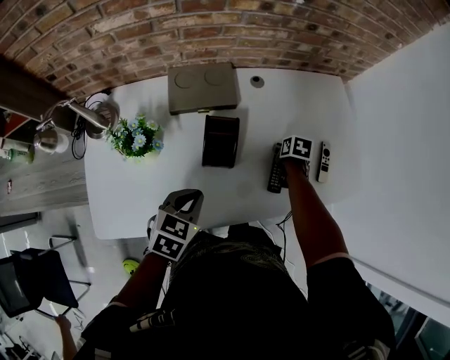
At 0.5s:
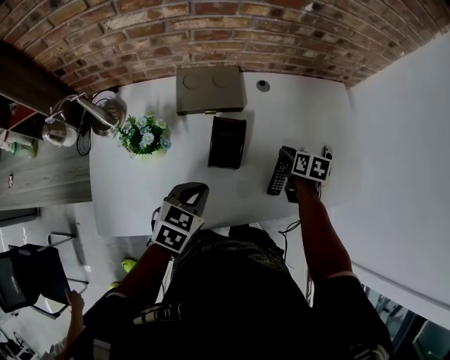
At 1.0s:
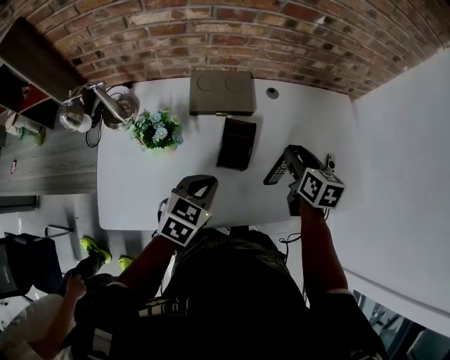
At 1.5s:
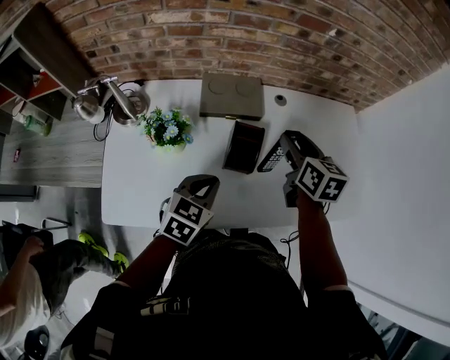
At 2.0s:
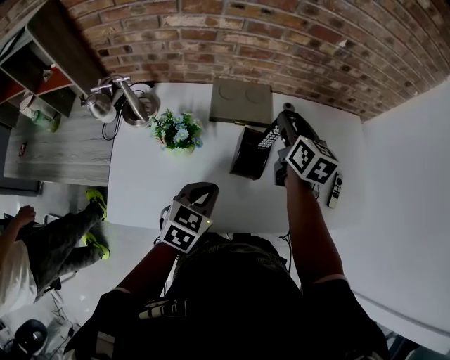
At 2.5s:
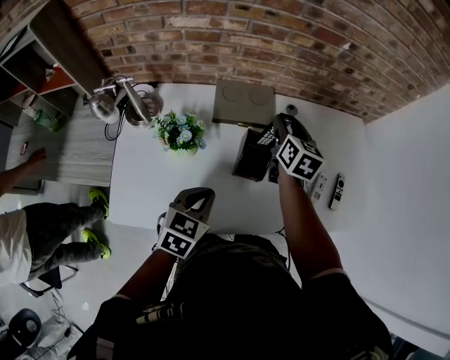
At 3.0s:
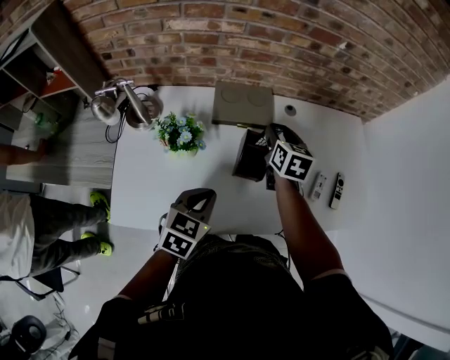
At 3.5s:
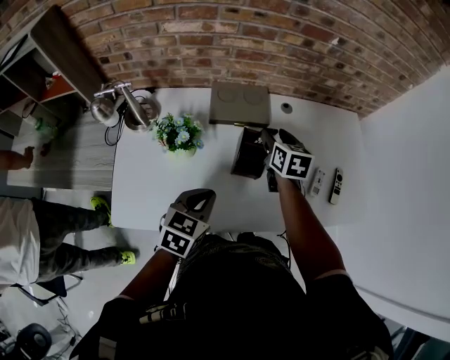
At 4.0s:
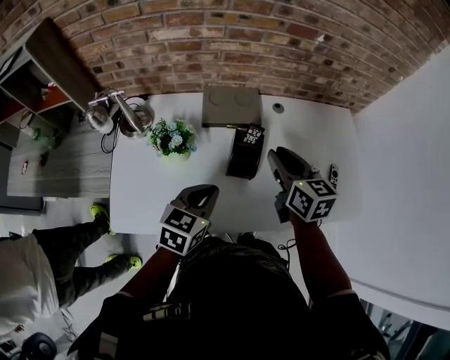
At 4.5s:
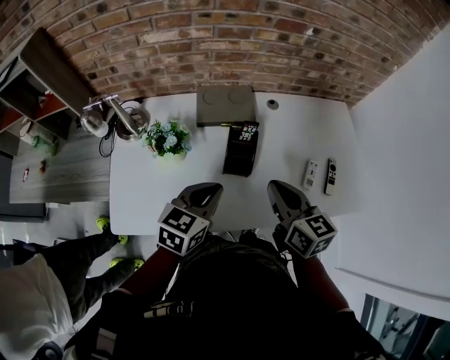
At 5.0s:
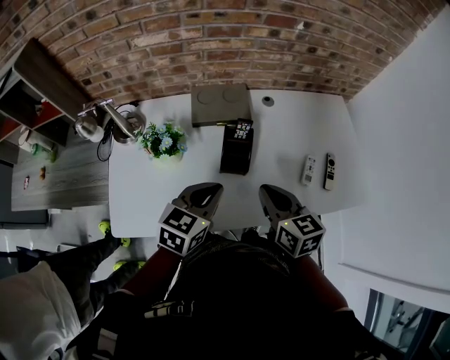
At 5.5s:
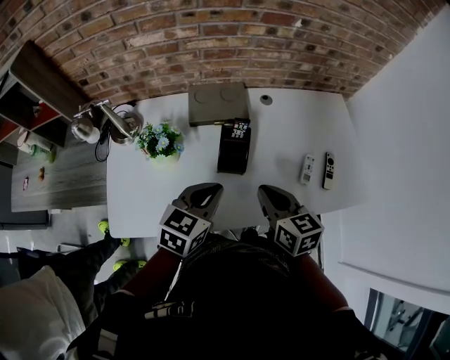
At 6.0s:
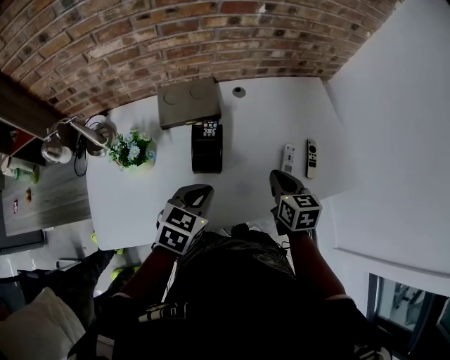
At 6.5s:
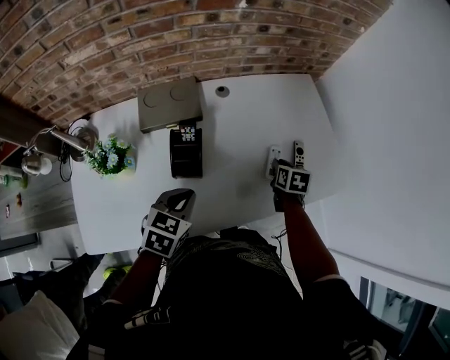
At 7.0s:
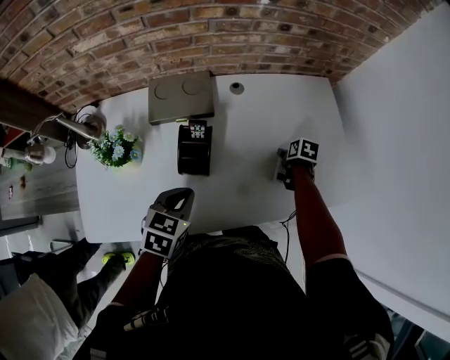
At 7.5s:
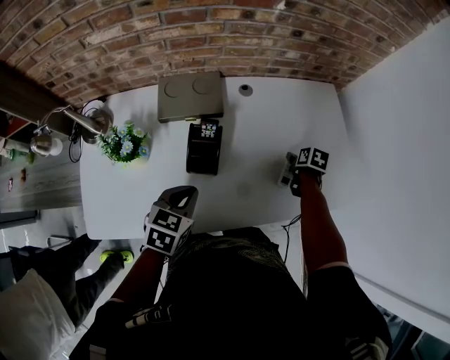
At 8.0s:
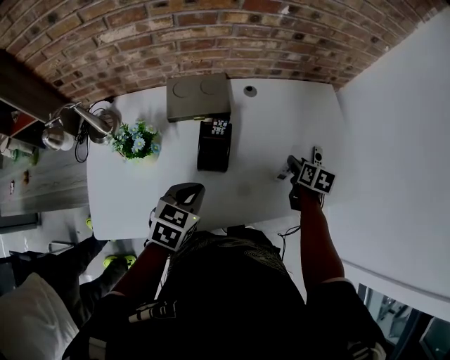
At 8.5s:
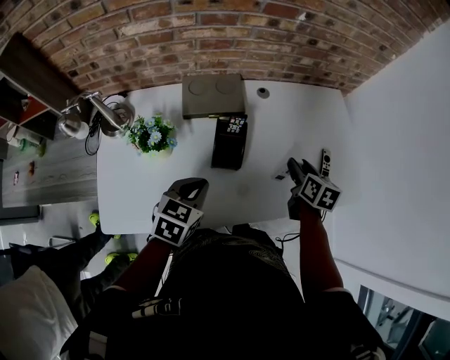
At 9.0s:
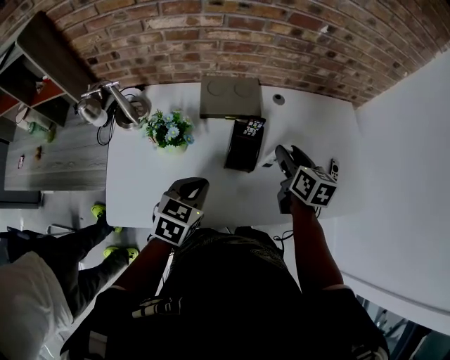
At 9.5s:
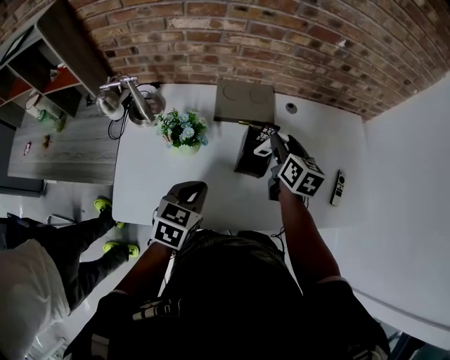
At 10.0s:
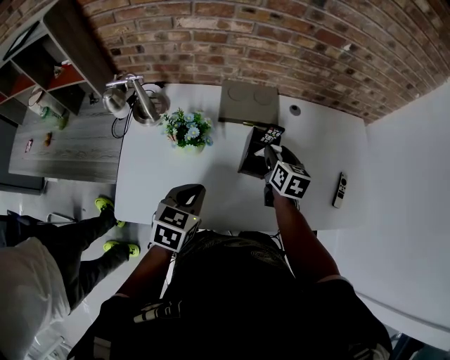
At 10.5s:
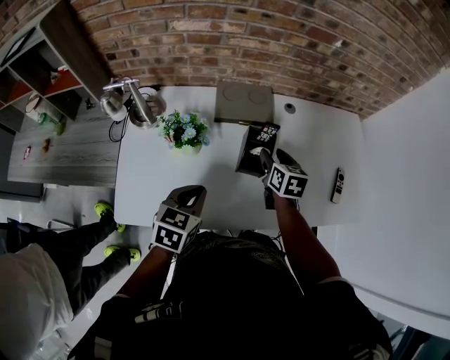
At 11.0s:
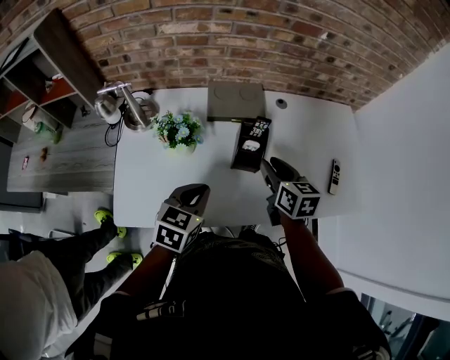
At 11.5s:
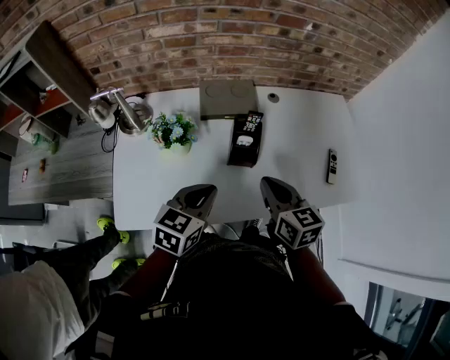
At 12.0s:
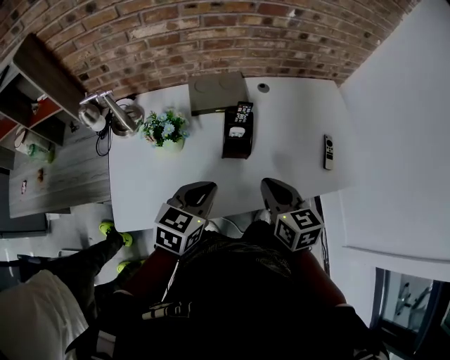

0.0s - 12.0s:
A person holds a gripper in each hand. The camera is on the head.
0.0s - 2.0s: The left gripper ends up some 5 cm from where it was. The right gripper moves upward and to the left, about 35 cm, and tips its fingers upward by approximately 50 degrees.
2.0s - 4.0s: The right gripper goes approximately 10 cm backward.
4.0s - 6.0s: The right gripper moves to the right and downward, approximately 20 cm, rotates roughly 20 degrees, and closes up. Meanwhile the left gripper travels to the right by some 10 cm.
6.0s - 8.0s: The right gripper travels forward, to the right and downward by roughly 15 cm, turns by some 20 degrees, and opens.
8.0s - 10.0s: The right gripper travels to the left by about 25 cm, and swivels roughly 20 degrees; the left gripper goes about 15 cm to the left and backward.
10.0s - 12.0s: The right gripper heads backward, covering approximately 20 cm, and closes its fingers. Meanwhile the left gripper heads to the right, covering roughly 10 cm.

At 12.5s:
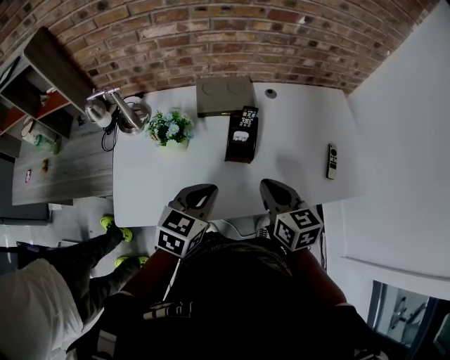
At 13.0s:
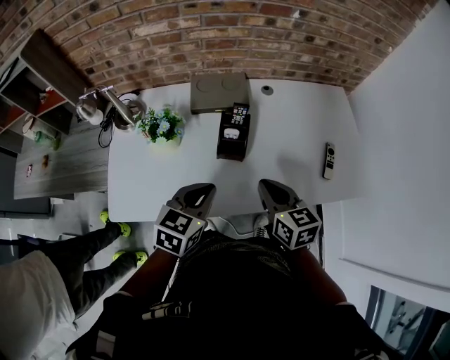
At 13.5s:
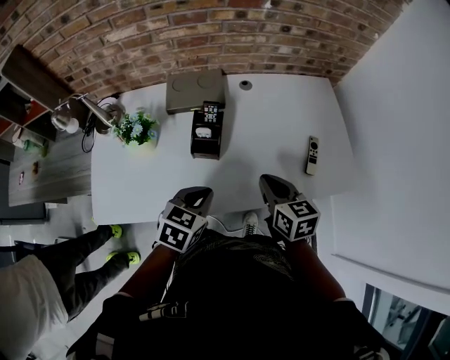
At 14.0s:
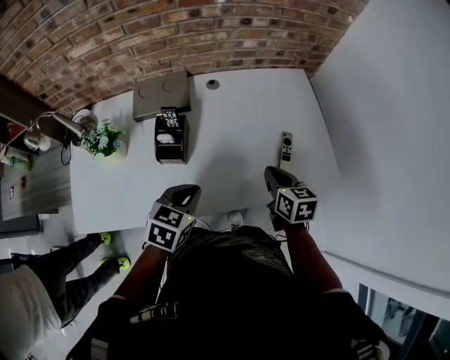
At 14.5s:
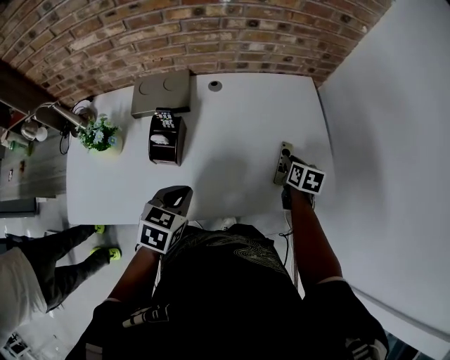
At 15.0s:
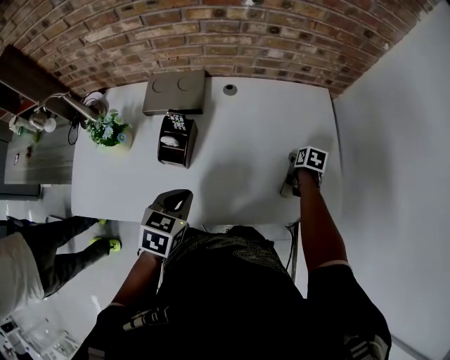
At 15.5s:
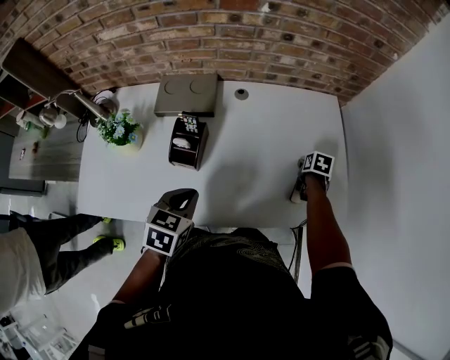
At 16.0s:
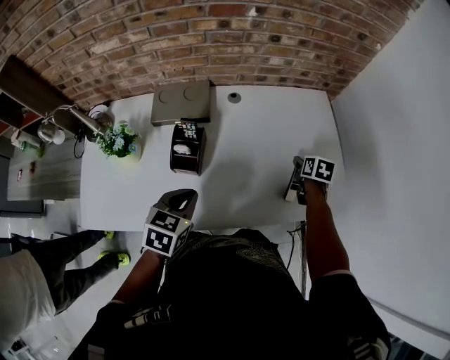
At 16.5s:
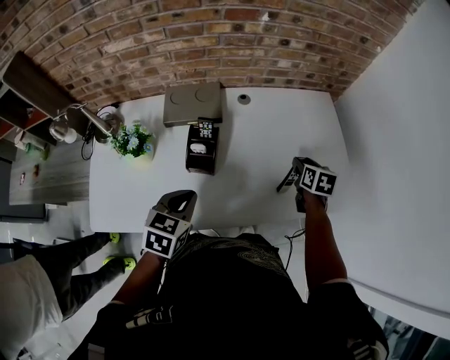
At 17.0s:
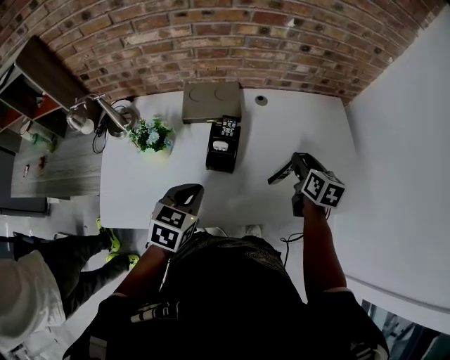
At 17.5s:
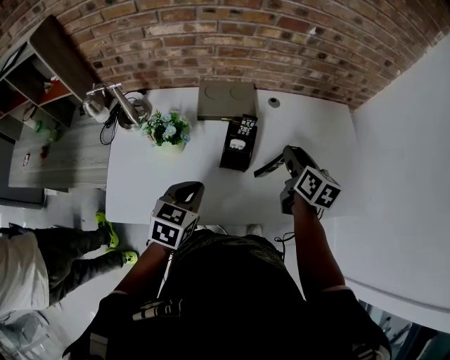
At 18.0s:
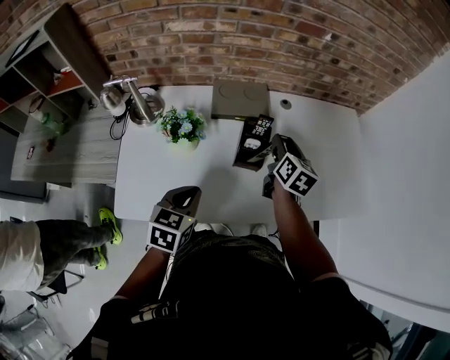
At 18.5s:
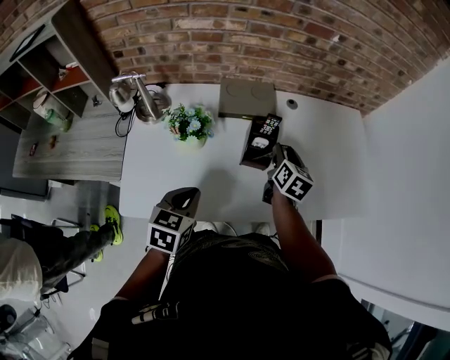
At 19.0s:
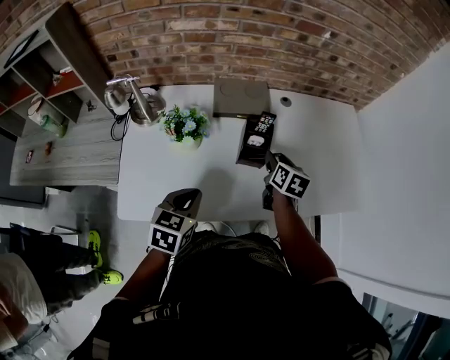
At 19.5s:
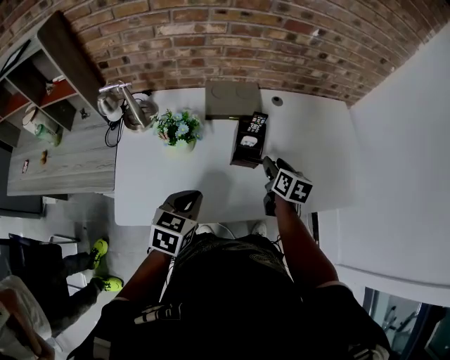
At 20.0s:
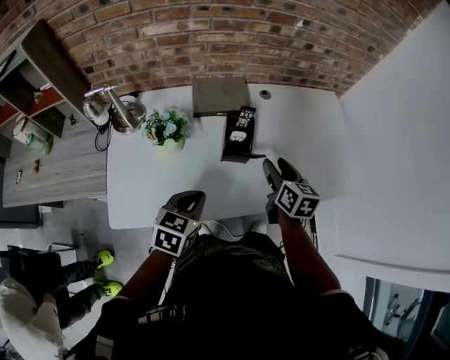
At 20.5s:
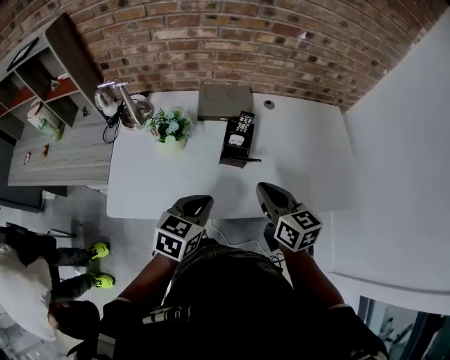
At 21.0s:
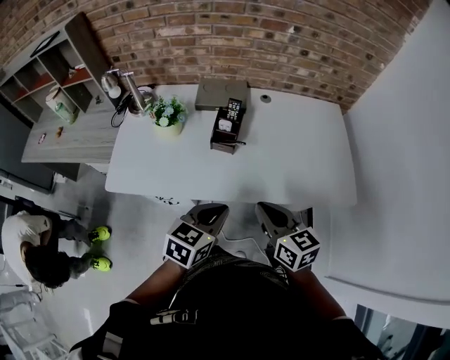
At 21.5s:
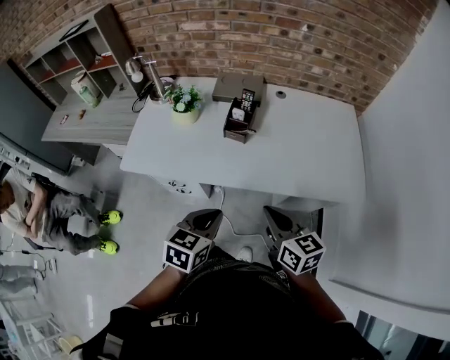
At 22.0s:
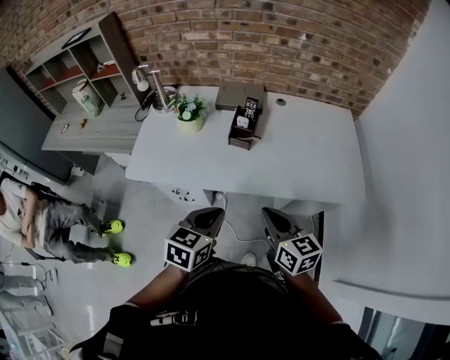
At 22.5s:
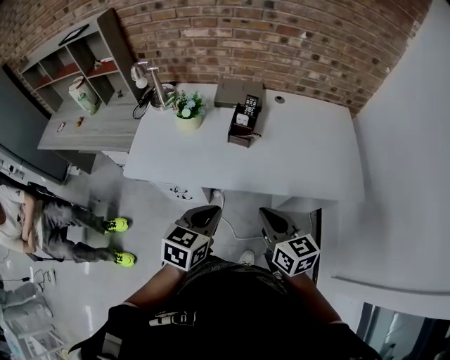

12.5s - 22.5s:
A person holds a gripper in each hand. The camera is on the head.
12.5s - 14.5s: The left gripper moves to the right, approximately 20 cm, while the right gripper heads to the right, forward and downward, covering roughly 40 cm, and rotates about 30 degrees.
14.5s - 16.5s: Both grippers move to the left, approximately 10 cm. The right gripper opens up.
16.5s - 18.5s: The right gripper travels to the left by some 25 cm. The left gripper goes about 20 cm to the left and backward.
18.5s - 20.5s: The left gripper is displaced to the right by some 10 cm, while the right gripper shifts some 20 cm backward and upward, changes its angle by about 30 degrees, and closes up.
20.5s - 22.5s: The grippers both shift backward by roughly 20 cm.

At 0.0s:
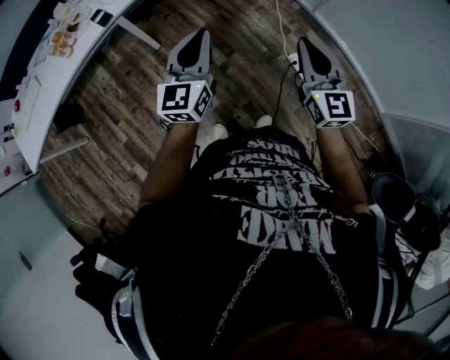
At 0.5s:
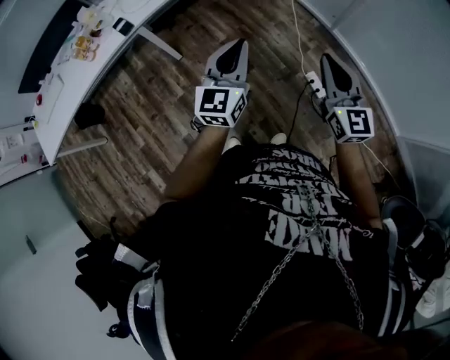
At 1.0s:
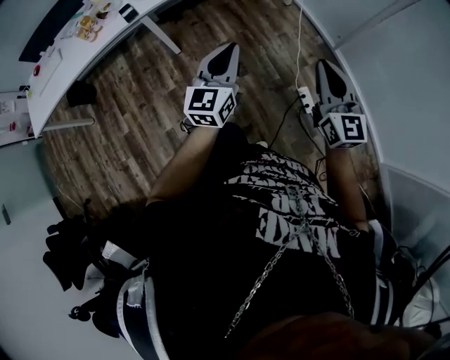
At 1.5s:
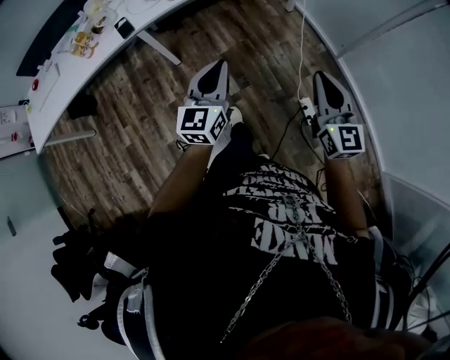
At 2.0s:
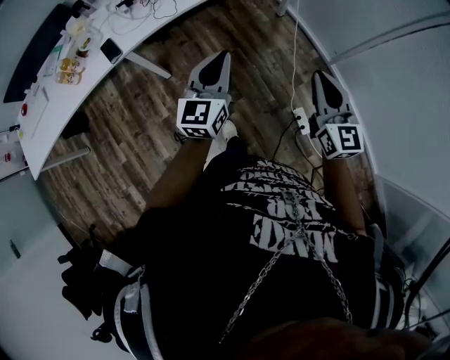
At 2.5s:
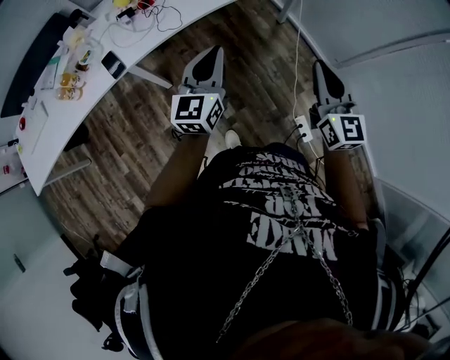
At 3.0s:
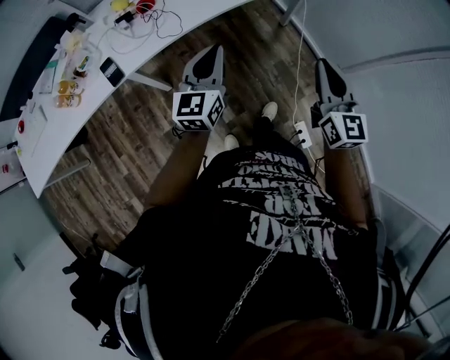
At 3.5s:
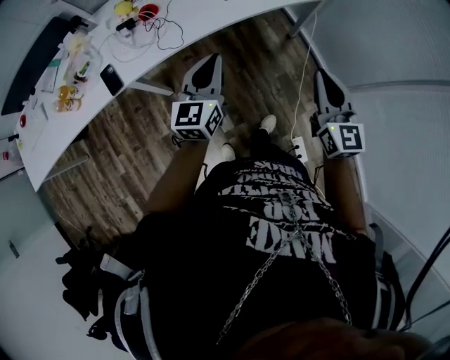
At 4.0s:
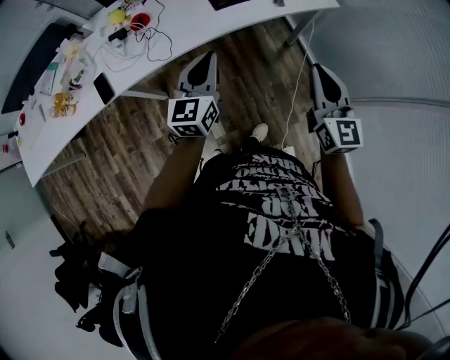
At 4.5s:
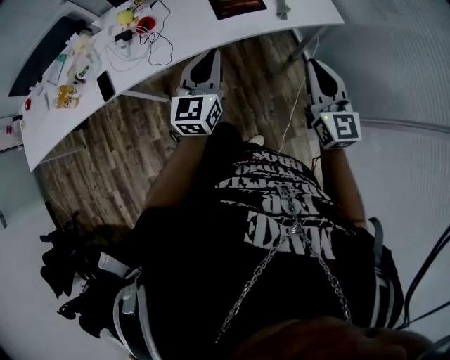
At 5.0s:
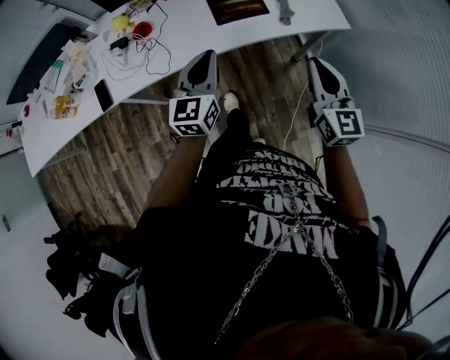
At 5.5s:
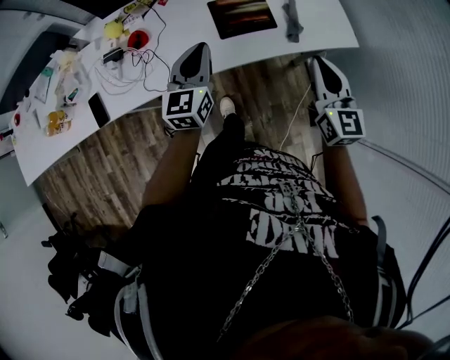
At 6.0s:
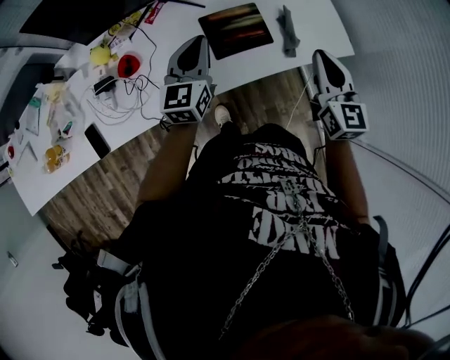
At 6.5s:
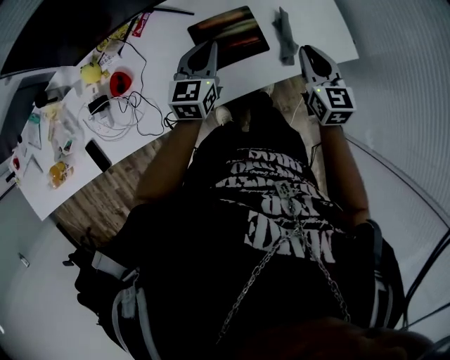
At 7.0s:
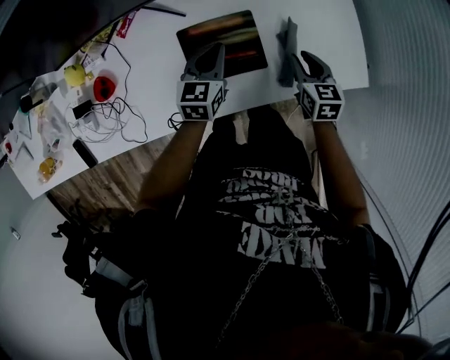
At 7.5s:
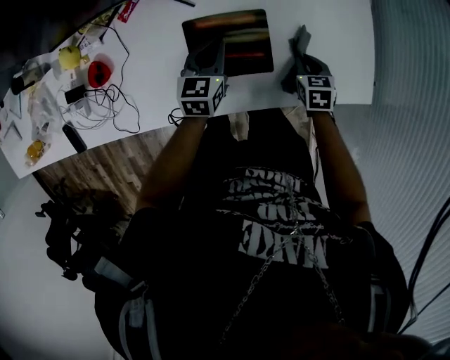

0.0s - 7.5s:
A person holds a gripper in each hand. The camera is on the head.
0.0s - 2.0s: The two grippers go approximately 25 cm forward.
2.0s - 4.0s: The grippers both shift forward by approximately 30 cm.
4.0s - 5.5s: Both grippers travel together forward, about 25 cm.
5.5s - 7.5s: The right gripper travels downward and forward by some 50 cm, and angles its fingers downward, by approximately 50 degrees. Meanwhile the left gripper heads forward and downward, covering some 35 cm, and swivels approximately 30 degrees.
